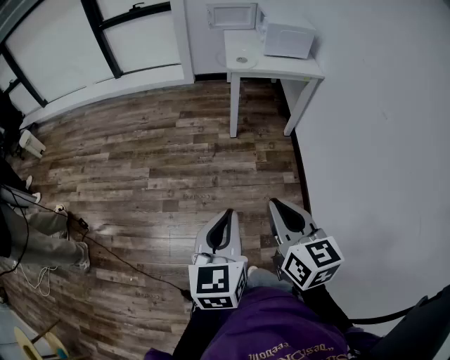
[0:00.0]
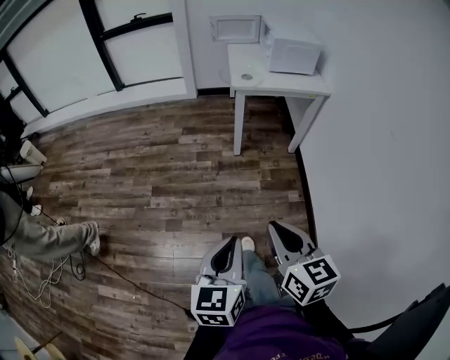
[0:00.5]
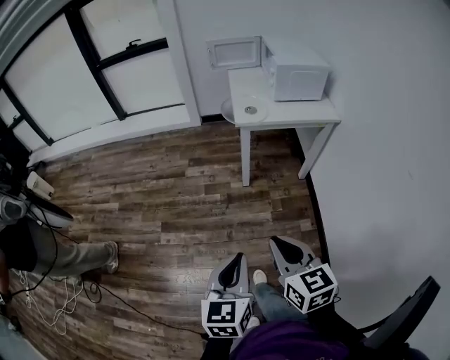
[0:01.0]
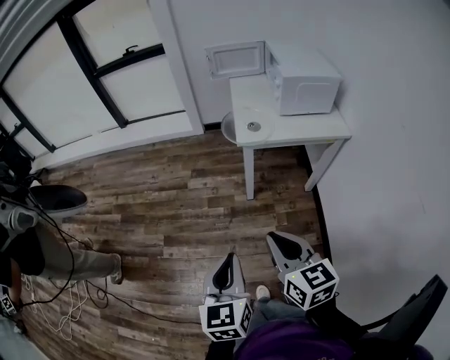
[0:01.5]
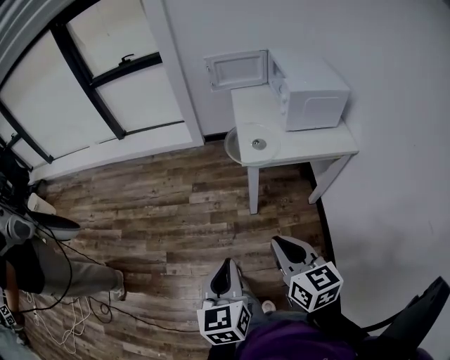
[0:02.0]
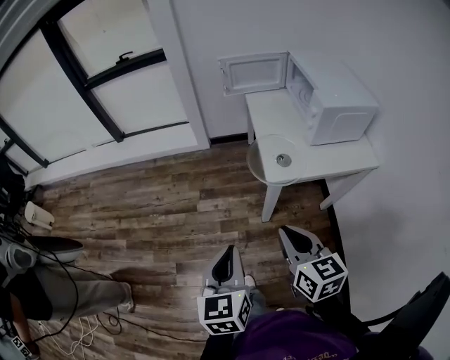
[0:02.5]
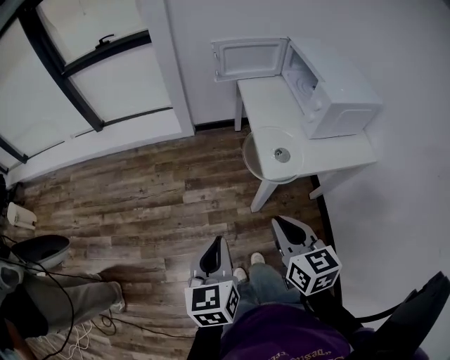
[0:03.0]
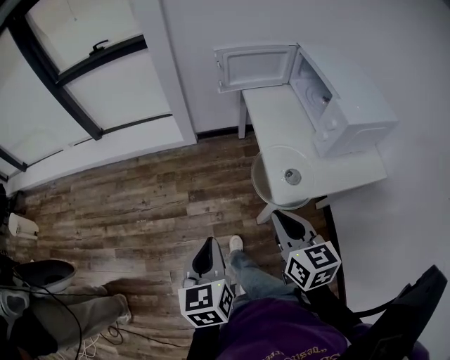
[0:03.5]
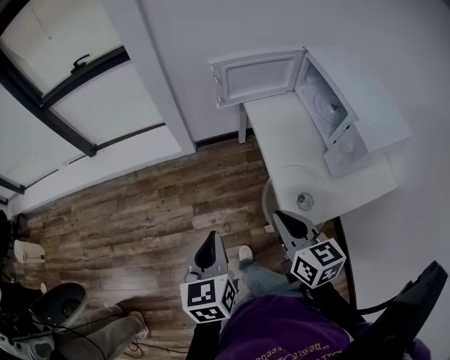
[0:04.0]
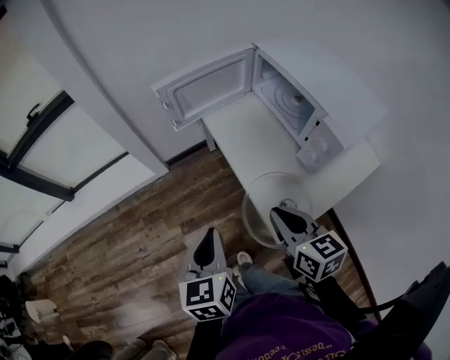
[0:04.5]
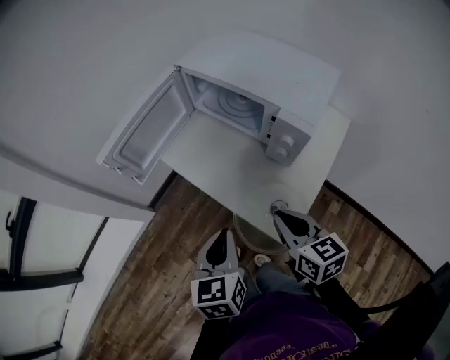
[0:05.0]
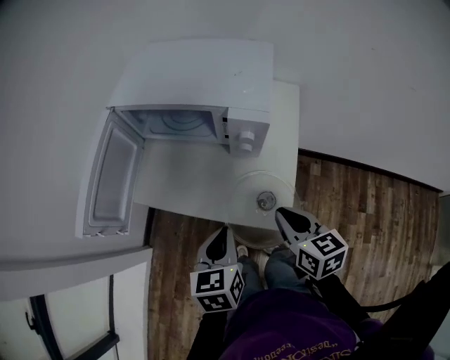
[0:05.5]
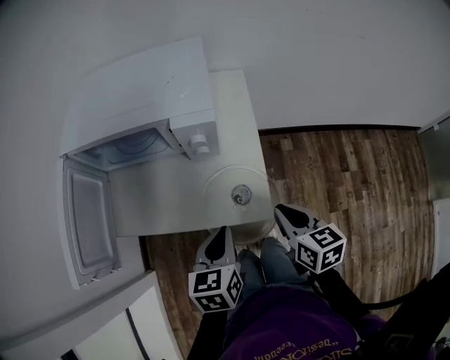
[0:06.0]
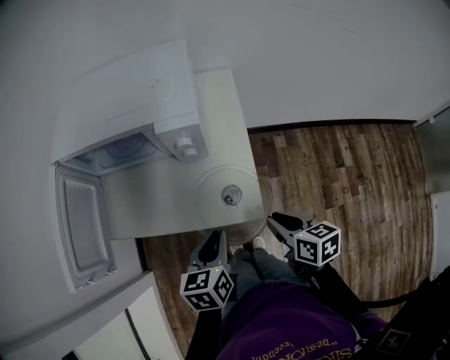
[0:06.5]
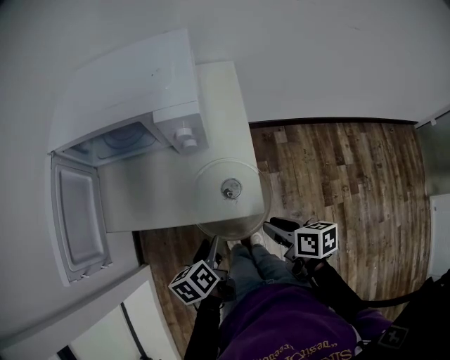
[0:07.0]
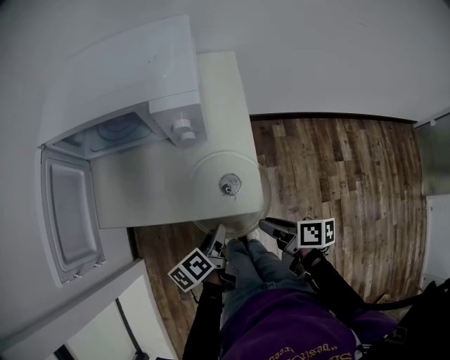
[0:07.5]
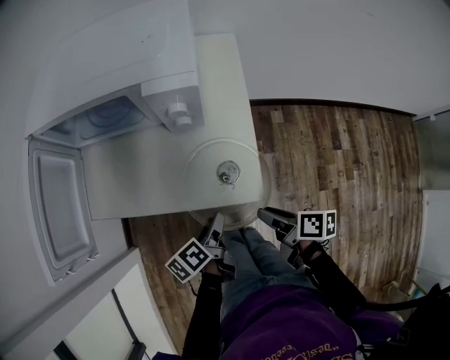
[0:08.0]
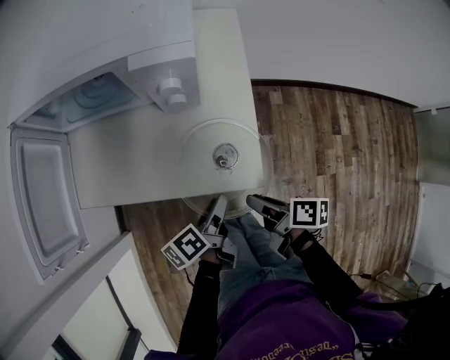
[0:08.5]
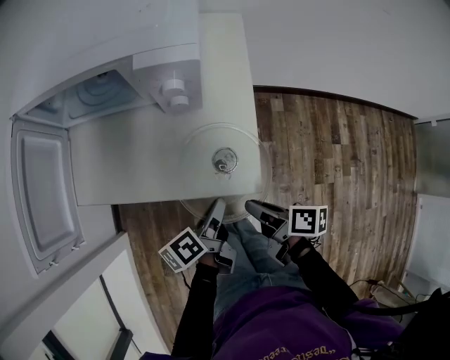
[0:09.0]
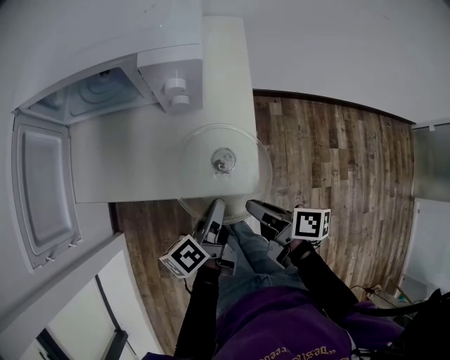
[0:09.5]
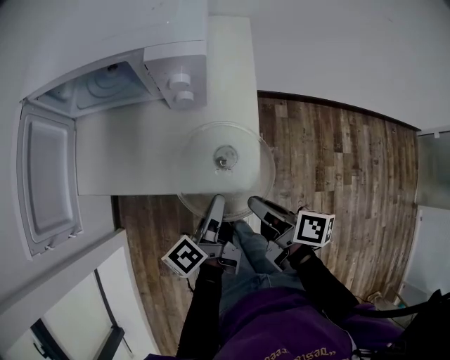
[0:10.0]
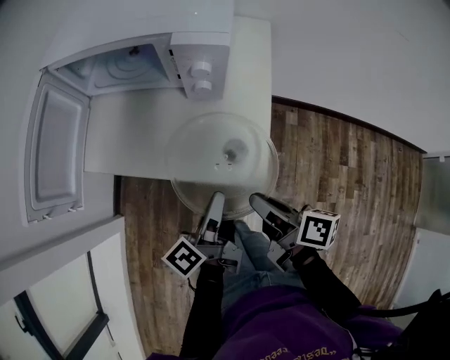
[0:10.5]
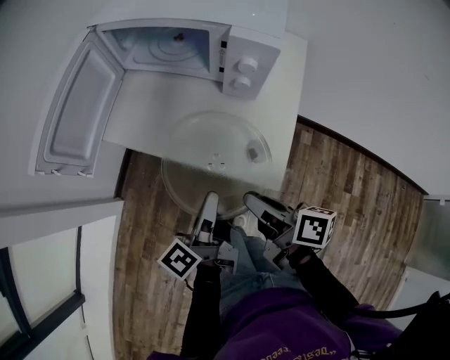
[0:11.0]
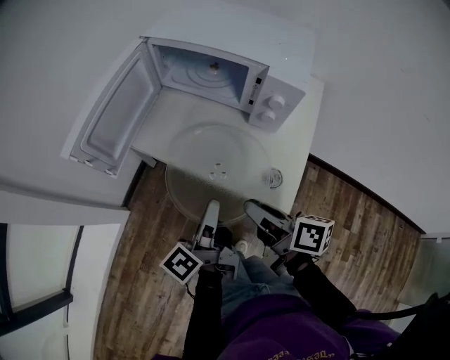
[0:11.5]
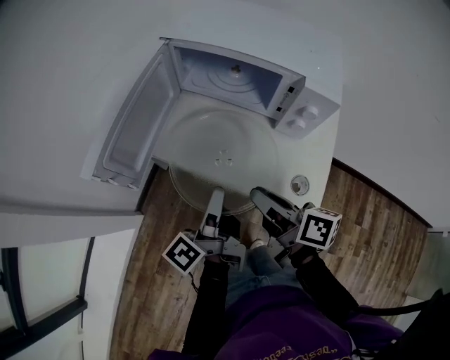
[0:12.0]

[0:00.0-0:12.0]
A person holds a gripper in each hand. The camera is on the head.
0:00.0 to 0:02.0: Both grippers travel together forward, roughly 40 cm.
0:02.0 to 0:04.0: Both grippers are carried forward, roughly 50 cm.
0:04.0 to 0:06.0: The right gripper moves approximately 15 cm, and turns by about 80 degrees, while the left gripper changes place by approximately 25 cm, and rotates about 90 degrees.
0:06.0 to 0:08.0: The right gripper shifts approximately 15 cm downward and backward, rolls clockwise, seen from behind, by approximately 40 degrees, and opens its fingers. The left gripper heads downward, covering roughly 15 cm, rotates around the line of its fingers by approximately 50 degrees, counterclockwise from behind, and opens.
0:08.0 to 0:10.0: The left gripper is displaced upward by roughly 5 cm, swivels some 20 degrees, and closes its fingers.
0:10.0 to 0:12.0: The right gripper changes place by about 25 cm, and turns by approximately 30 degrees. The left gripper ends up approximately 25 cm from where it was, and turns by about 30 degrees.

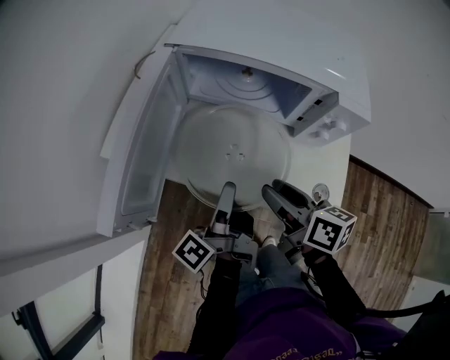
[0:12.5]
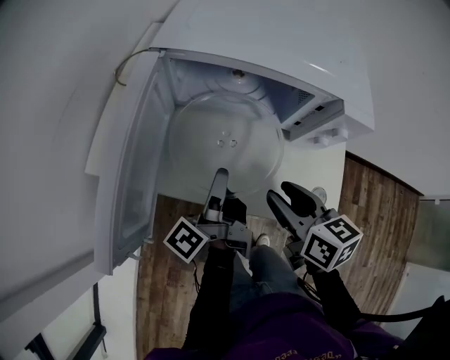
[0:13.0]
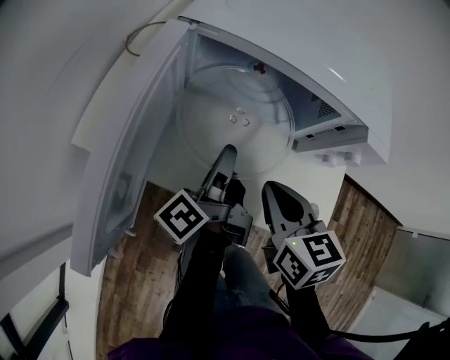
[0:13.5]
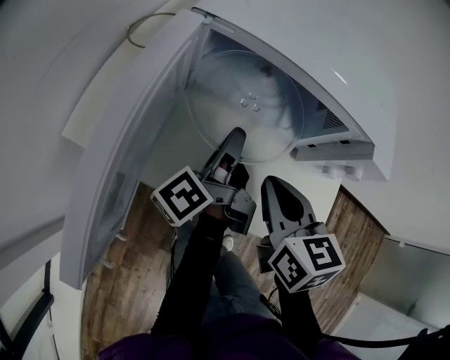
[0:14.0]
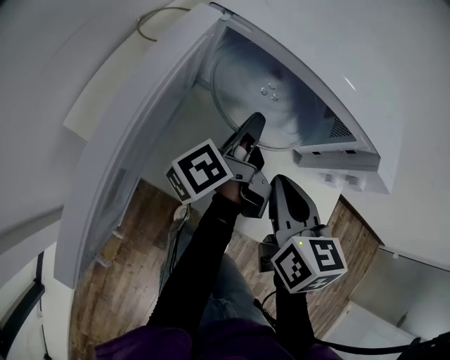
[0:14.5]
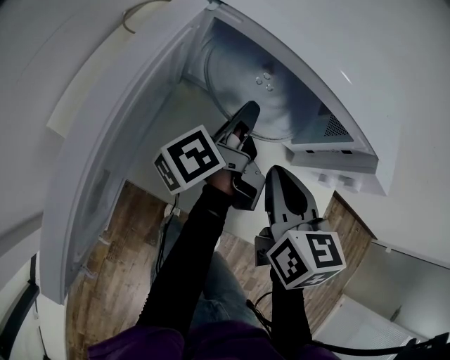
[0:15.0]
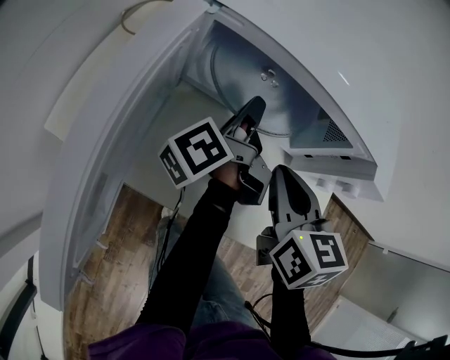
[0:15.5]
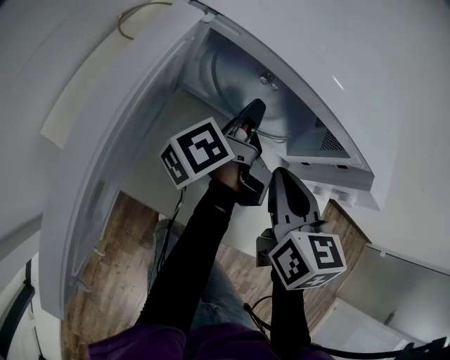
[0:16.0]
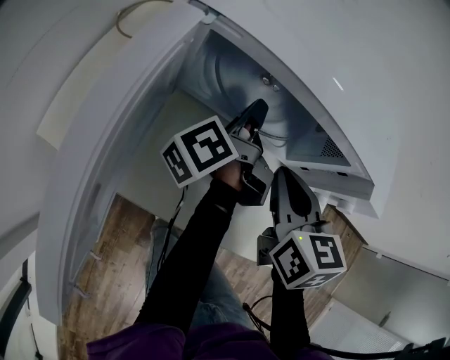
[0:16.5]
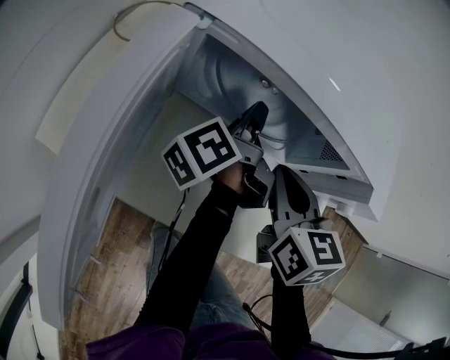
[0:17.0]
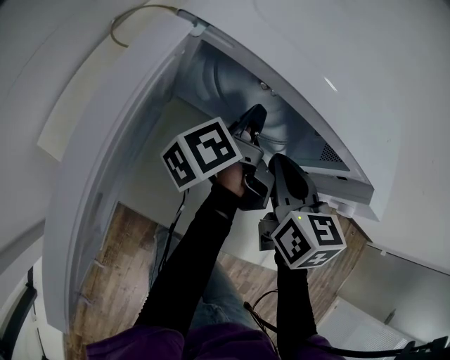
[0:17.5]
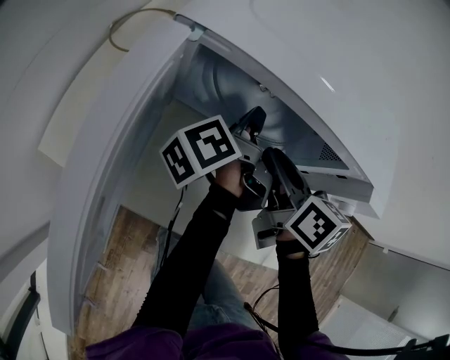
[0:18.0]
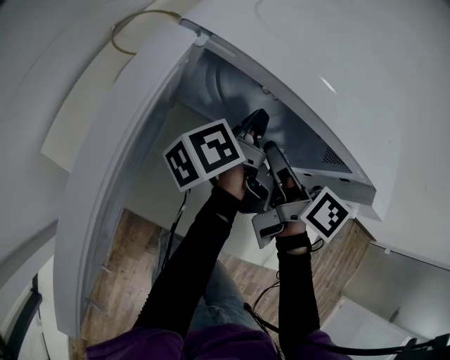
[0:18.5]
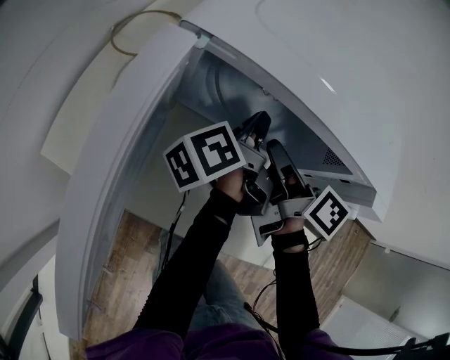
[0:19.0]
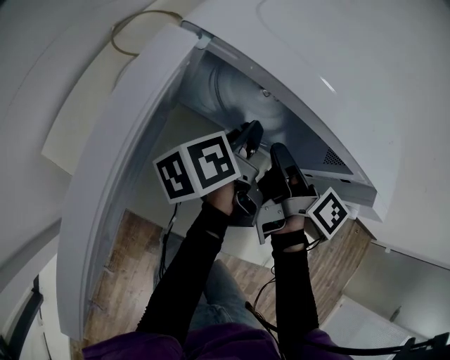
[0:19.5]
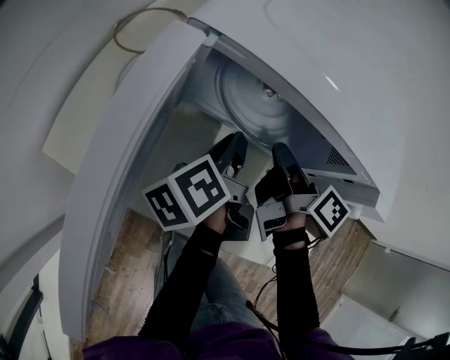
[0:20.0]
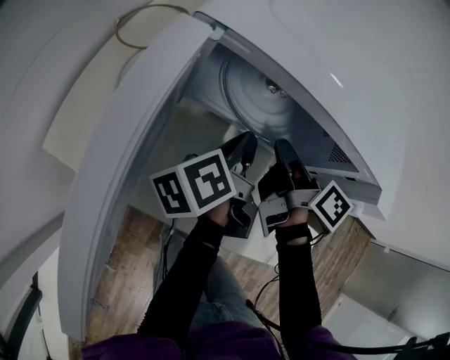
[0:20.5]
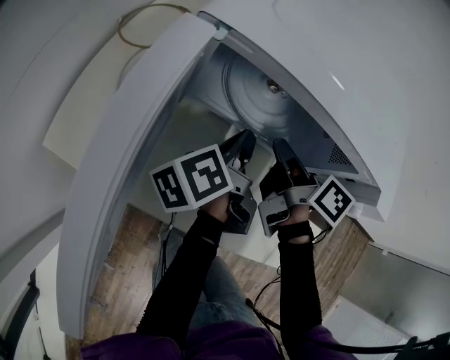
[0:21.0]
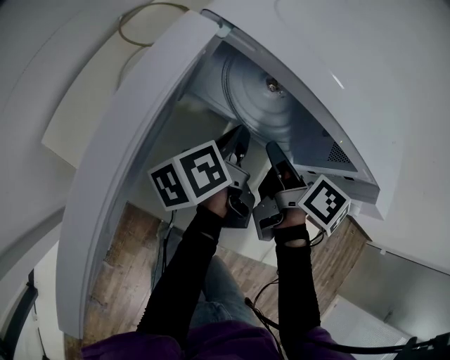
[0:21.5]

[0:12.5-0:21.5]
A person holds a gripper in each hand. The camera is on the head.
0:12.5 to 0:14.5: The right gripper travels forward by approximately 10 cm, swivels roughly 40 degrees, and closes, while the left gripper shifts some 20 cm forward.
0:14.5 to 0:17.0: Both grippers travel together forward, some 5 cm.
0:17.0 to 0:19.5: The right gripper goes roughly 5 cm forward, and twists approximately 60 degrees clockwise, seen from behind.
0:19.5 to 0:21.5: The right gripper turns by some 20 degrees.

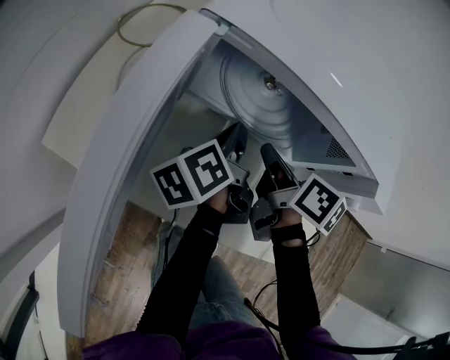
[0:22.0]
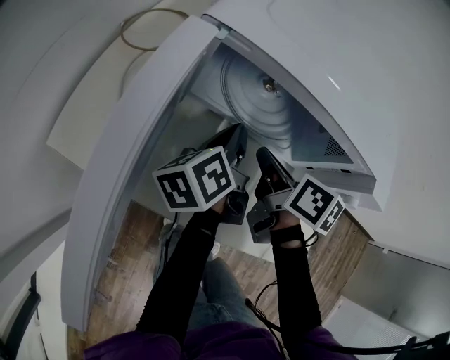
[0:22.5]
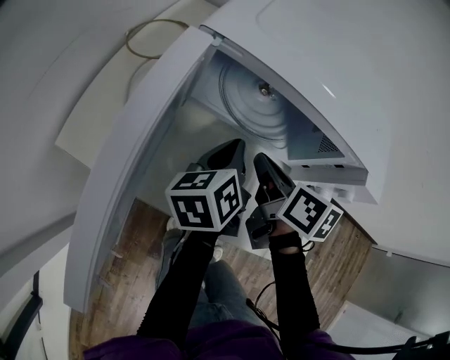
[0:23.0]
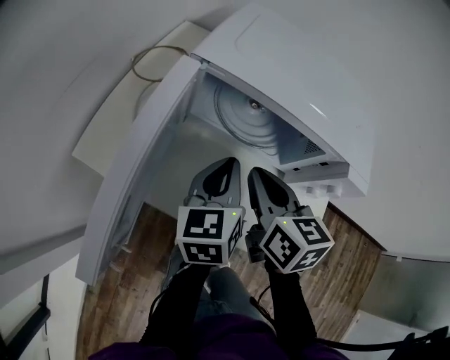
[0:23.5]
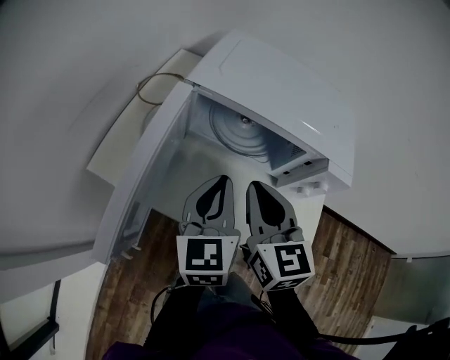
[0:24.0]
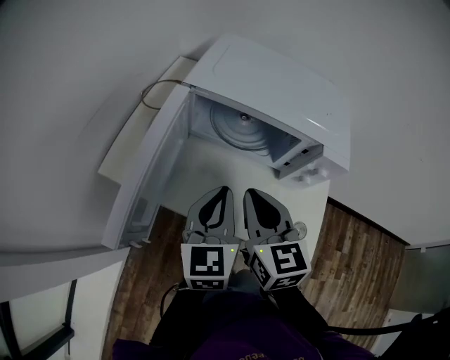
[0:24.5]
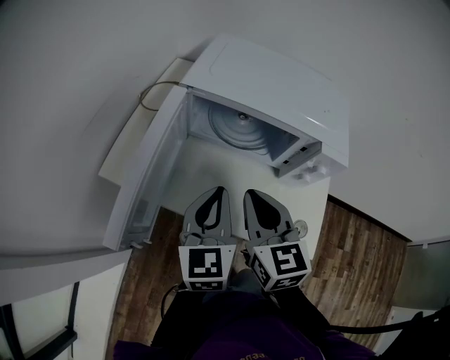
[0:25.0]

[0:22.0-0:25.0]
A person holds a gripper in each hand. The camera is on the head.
0:22.0 to 0:23.5: Both grippers travel together upward and backward, roughly 10 cm. The left gripper rolls clockwise, seen from behind, by about 50 degrees. The right gripper rotates approximately 40 degrees.
0:23.5 to 0:25.0: Both grippers travel together backward and upward, roughly 10 cm. The left gripper rotates some 20 degrees.

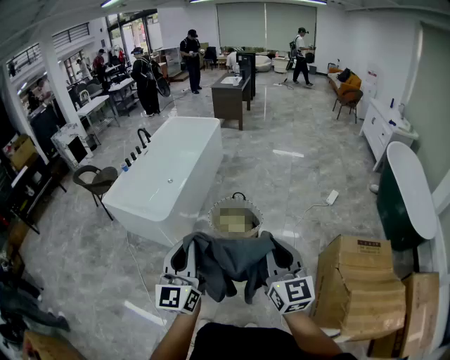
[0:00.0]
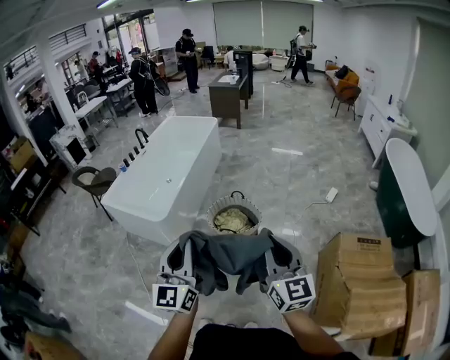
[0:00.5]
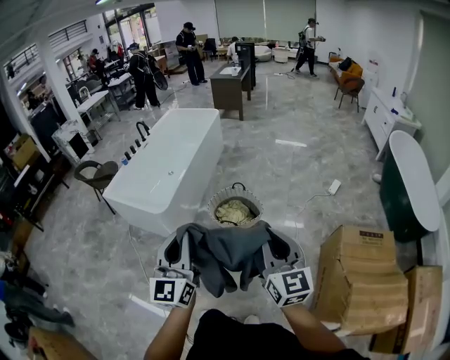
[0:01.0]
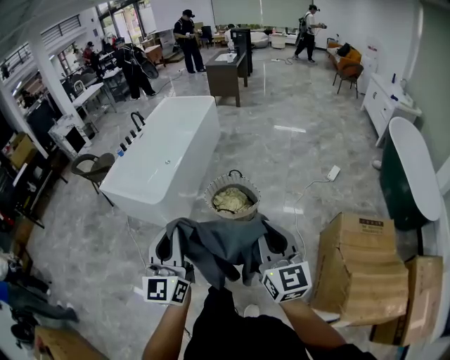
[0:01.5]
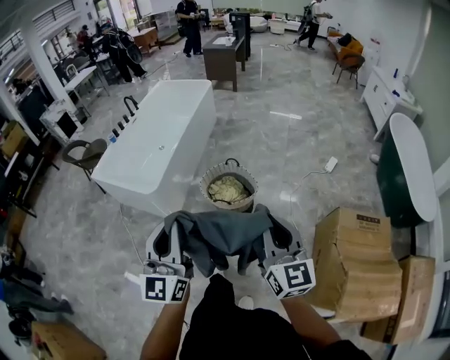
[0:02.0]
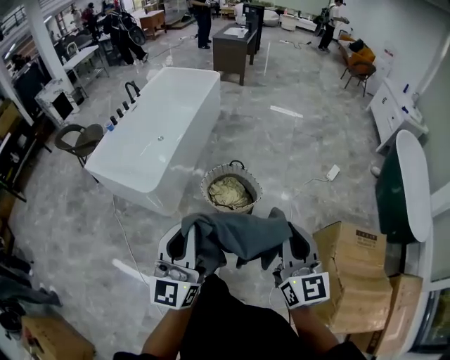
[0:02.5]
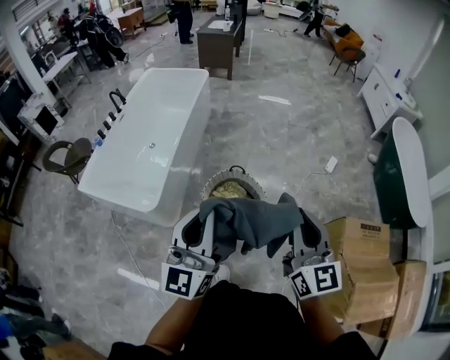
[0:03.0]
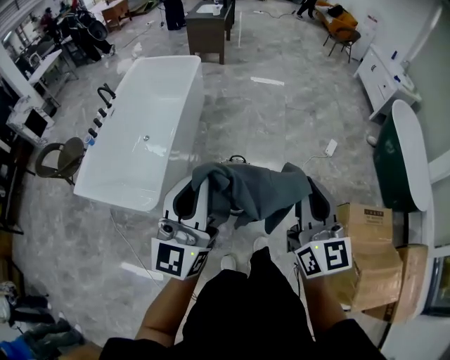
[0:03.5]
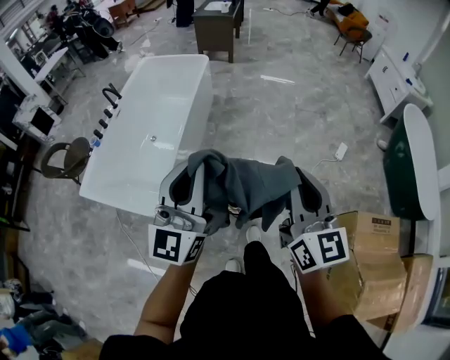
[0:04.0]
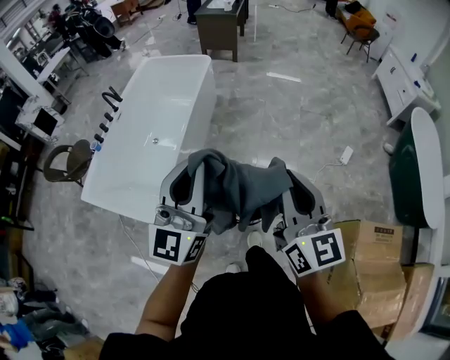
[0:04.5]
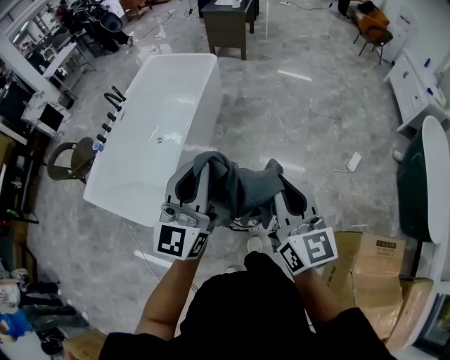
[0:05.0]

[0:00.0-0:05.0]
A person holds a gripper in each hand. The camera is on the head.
0:00.0 to 0:02.5: The grippers both shift forward by roughly 15 cm.
0:02.5 to 0:05.0: Both grippers are carried forward, some 50 cm.
